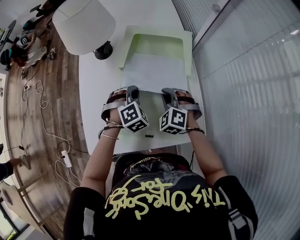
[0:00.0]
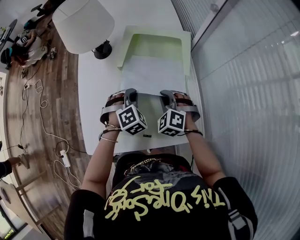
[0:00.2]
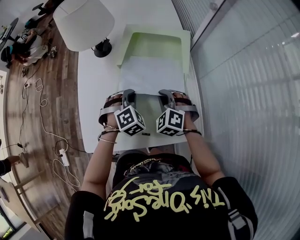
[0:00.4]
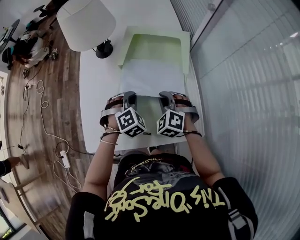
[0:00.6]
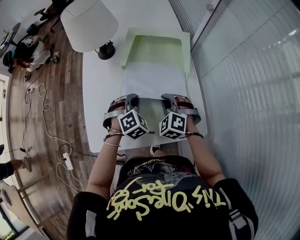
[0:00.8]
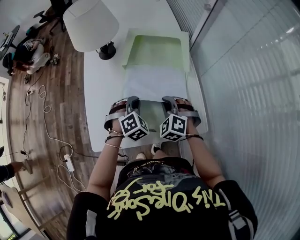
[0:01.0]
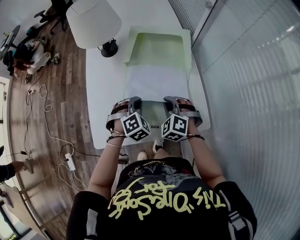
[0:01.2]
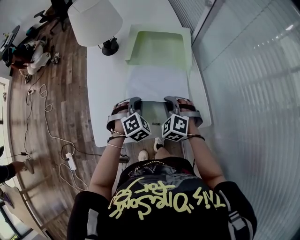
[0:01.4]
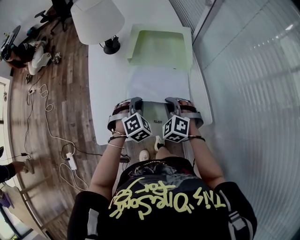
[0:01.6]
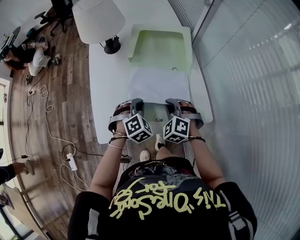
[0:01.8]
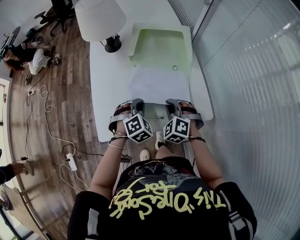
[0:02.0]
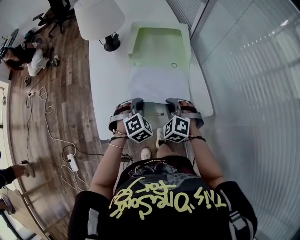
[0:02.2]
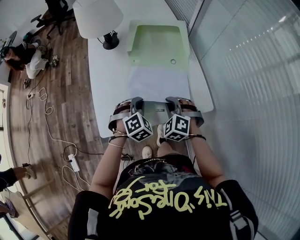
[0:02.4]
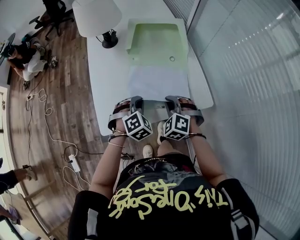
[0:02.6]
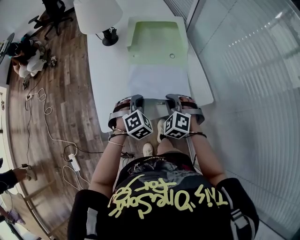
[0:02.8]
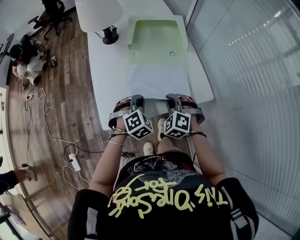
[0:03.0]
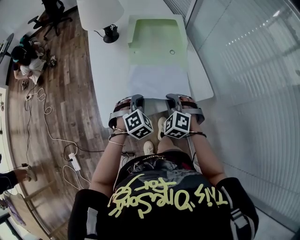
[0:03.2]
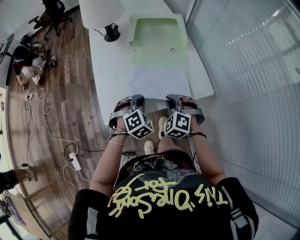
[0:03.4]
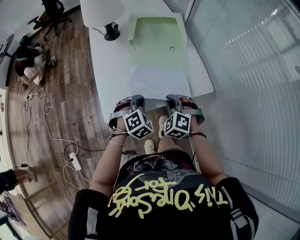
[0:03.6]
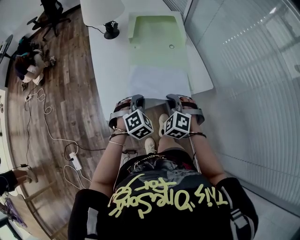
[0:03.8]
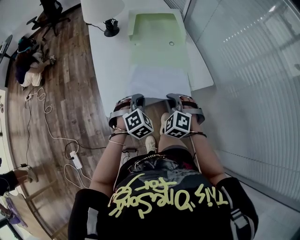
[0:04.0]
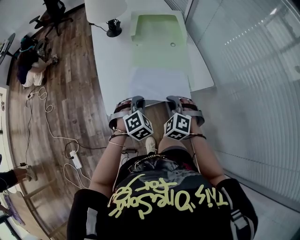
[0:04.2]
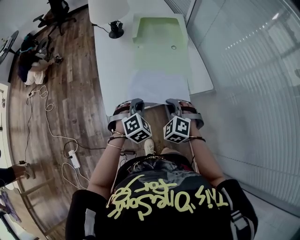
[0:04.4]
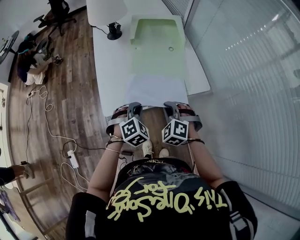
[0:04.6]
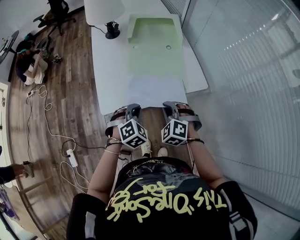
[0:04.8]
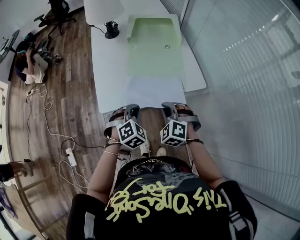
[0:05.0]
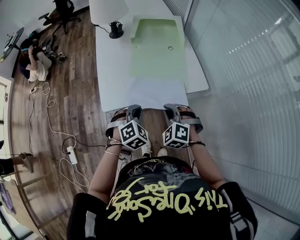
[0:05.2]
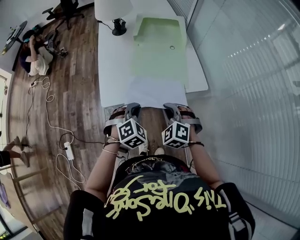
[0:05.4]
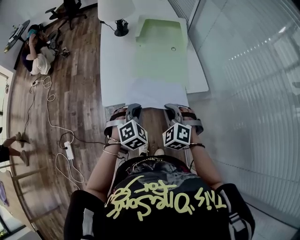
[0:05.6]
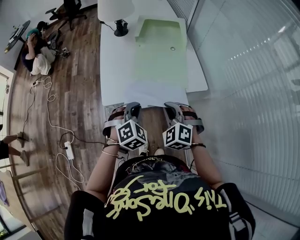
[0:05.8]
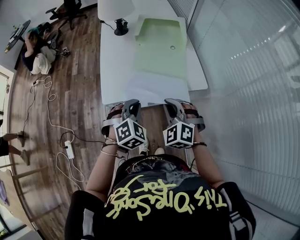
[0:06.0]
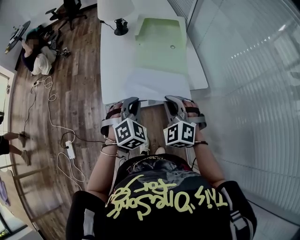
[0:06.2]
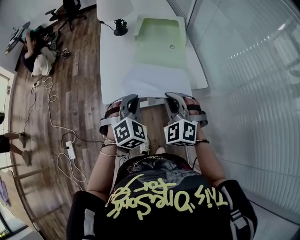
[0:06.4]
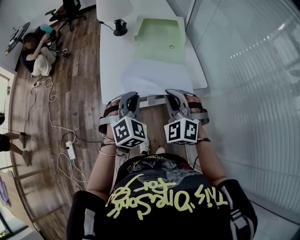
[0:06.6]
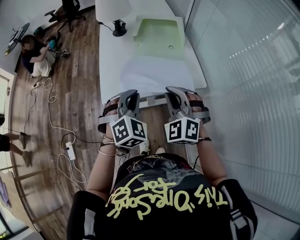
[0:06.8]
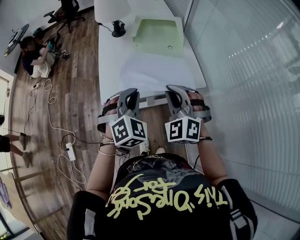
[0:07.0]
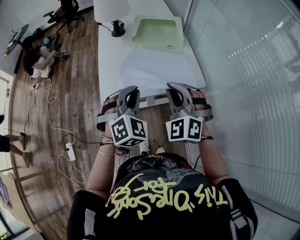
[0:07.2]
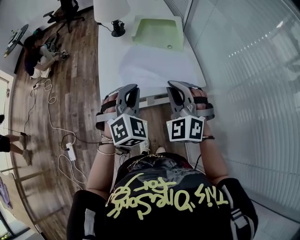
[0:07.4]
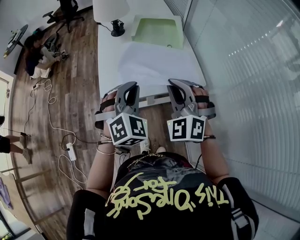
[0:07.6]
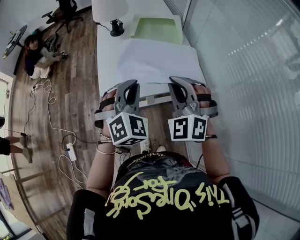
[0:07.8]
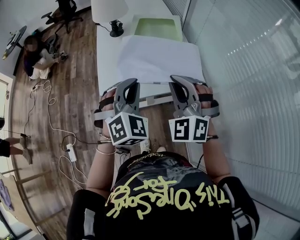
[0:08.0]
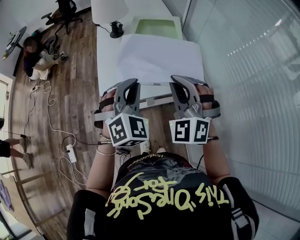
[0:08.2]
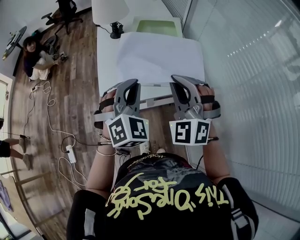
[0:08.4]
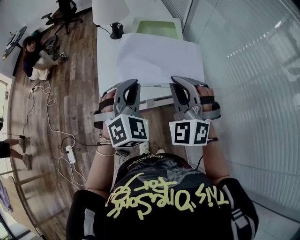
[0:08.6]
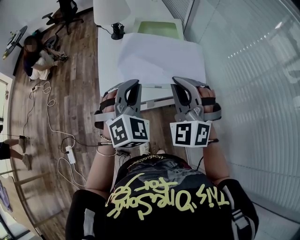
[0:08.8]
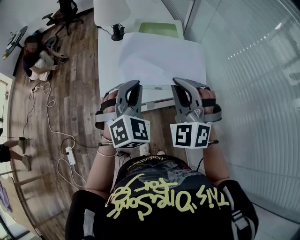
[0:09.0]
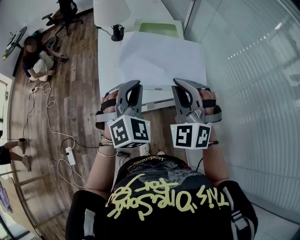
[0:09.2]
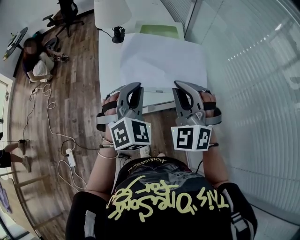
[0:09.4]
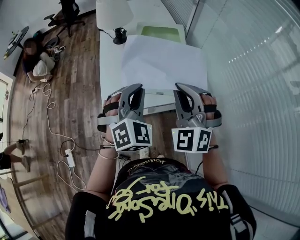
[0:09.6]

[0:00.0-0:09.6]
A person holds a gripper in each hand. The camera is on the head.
0:00.0 to 0:01.6: The two grippers go some 10 cm backward.
0:01.6 to 0:03.2: The grippers both shift backward by some 10 cm.
0:03.2 to 0:04.8: Both grippers travel together backward, some 10 cm.
0:04.8 to 0:06.4: Both grippers move upward, some 10 cm.
0:06.4 to 0:08.0: Both grippers move upward, some 10 cm.
0:08.0 to 0:09.6: The grippers make only small movements.

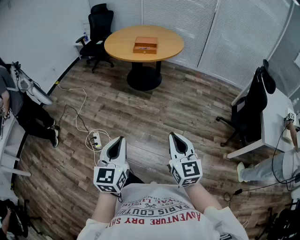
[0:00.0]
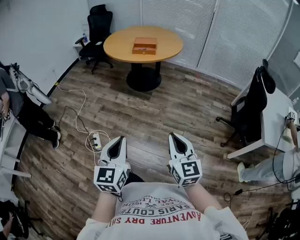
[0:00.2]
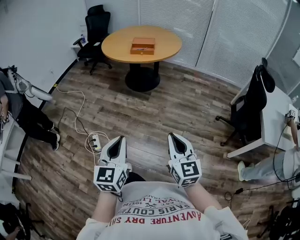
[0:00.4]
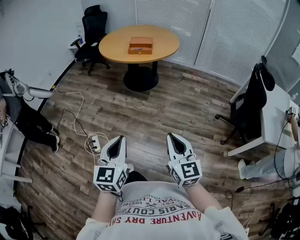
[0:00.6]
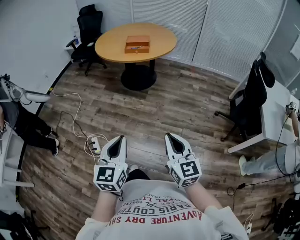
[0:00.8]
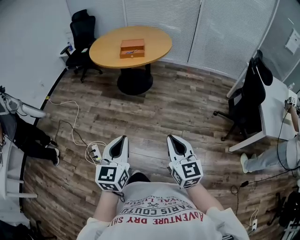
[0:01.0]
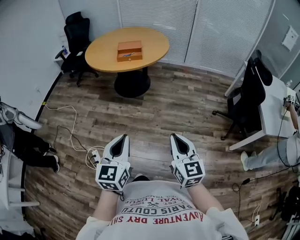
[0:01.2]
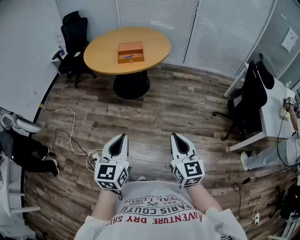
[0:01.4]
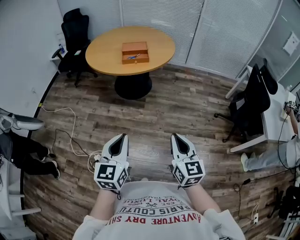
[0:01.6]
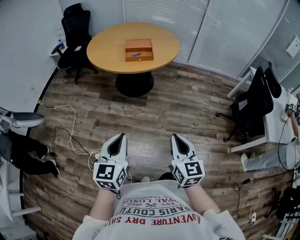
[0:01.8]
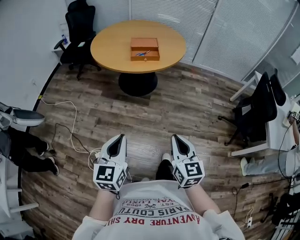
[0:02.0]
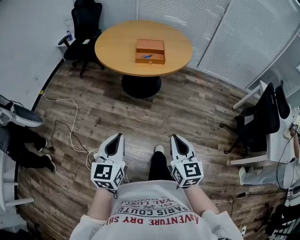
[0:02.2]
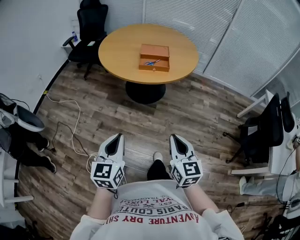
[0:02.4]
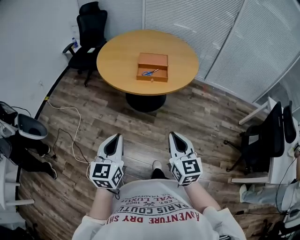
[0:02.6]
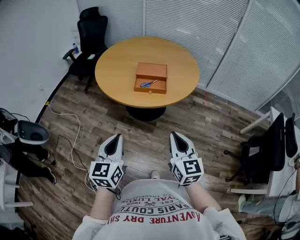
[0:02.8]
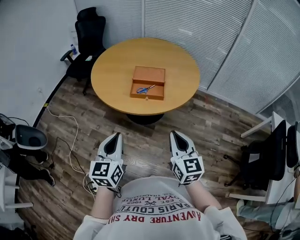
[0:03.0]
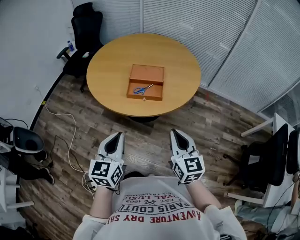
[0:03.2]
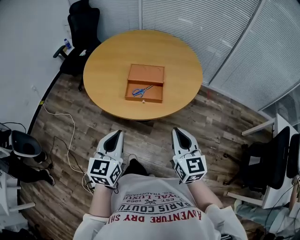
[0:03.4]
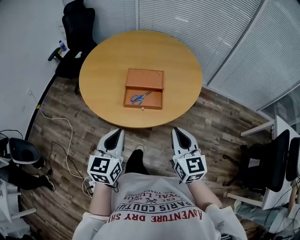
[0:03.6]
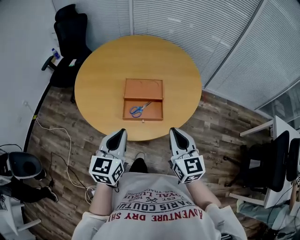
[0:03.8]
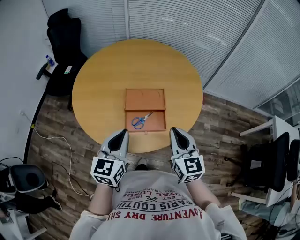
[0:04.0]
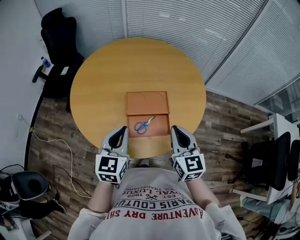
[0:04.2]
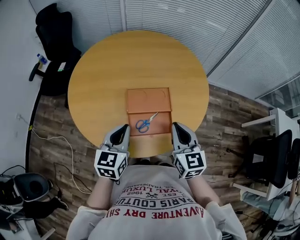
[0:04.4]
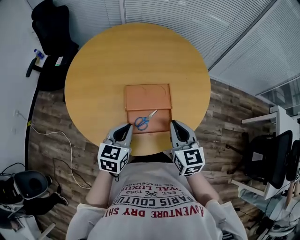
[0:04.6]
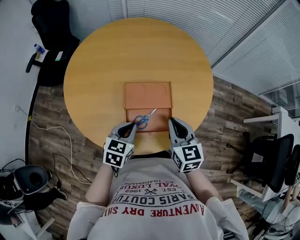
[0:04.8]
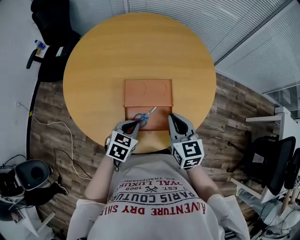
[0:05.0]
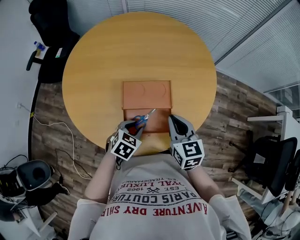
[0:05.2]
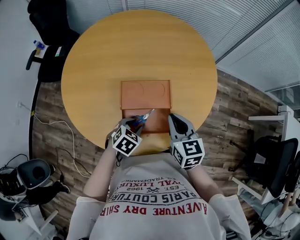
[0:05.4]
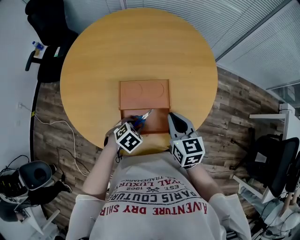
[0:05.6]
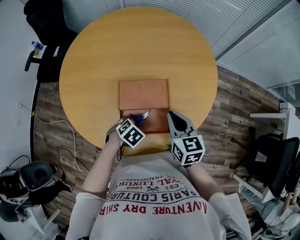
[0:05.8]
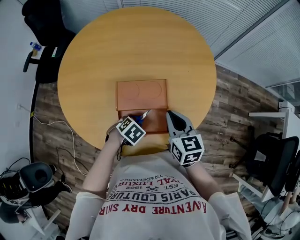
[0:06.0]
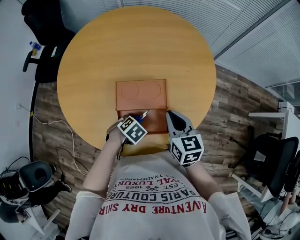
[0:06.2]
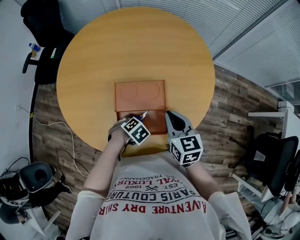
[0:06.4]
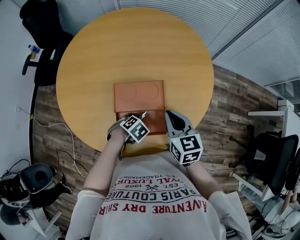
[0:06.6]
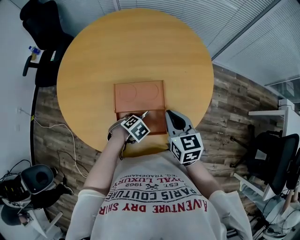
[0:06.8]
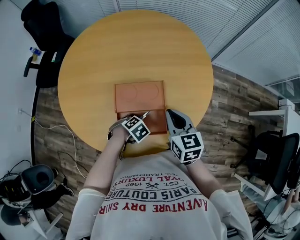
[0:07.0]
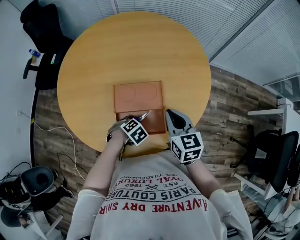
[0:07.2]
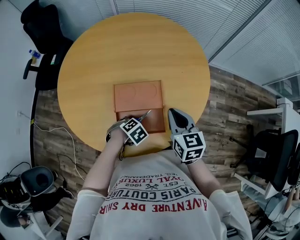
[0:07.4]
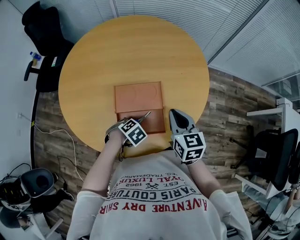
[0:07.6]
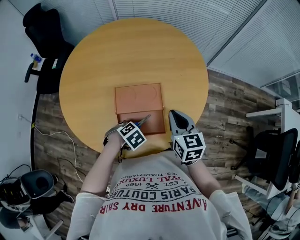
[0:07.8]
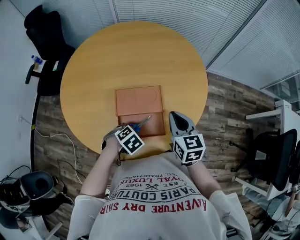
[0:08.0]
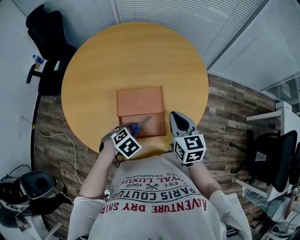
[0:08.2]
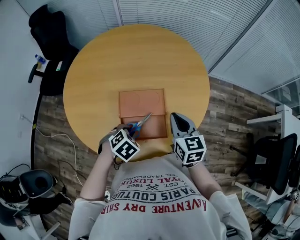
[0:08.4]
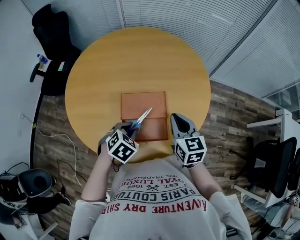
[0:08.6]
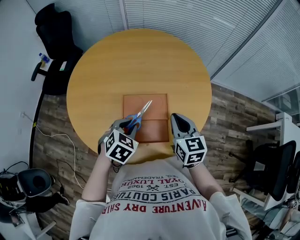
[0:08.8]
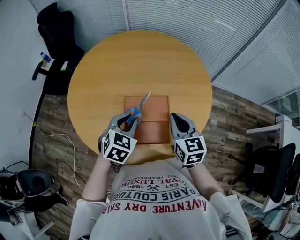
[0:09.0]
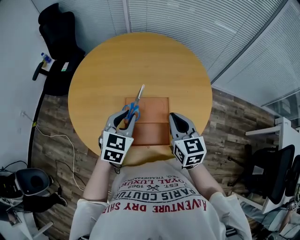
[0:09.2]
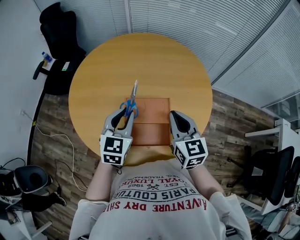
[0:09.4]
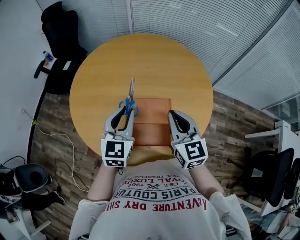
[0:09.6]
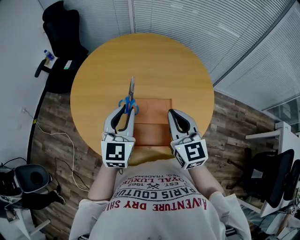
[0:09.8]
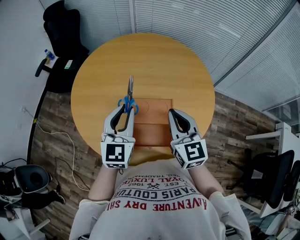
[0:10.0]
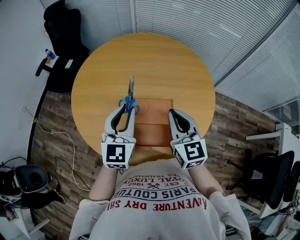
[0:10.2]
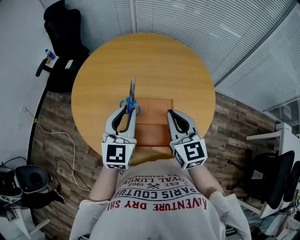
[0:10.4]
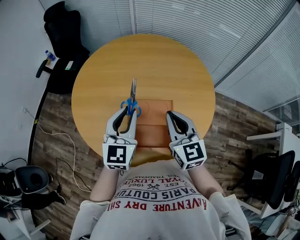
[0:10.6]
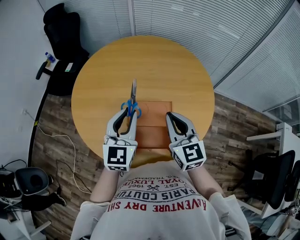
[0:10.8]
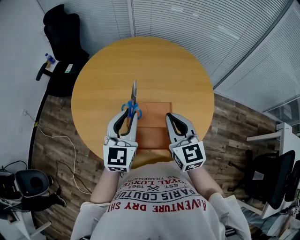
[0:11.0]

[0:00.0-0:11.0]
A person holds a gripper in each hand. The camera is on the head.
0:00.0 to 0:01.6: The left gripper moves forward, some 25 cm. Meanwhile the right gripper shifts some 20 cm forward and to the left.
0:01.6 to 0:03.2: The pair of grippers is taken forward, some 40 cm.
0:03.2 to 0:04.8: The grippers both shift forward by roughly 35 cm. The left gripper turns by some 40 degrees.
0:04.8 to 0:06.2: The left gripper is displaced downward by about 15 cm, and points its fingers some 40 degrees further downward; the right gripper shifts by roughly 5 cm.
0:06.2 to 0:07.8: The grippers stay close to where they were, moving slightly.
0:07.8 to 0:09.4: The left gripper shifts roughly 25 cm upward, and tips its fingers upward by about 60 degrees, while the right gripper shifts roughly 10 cm upward.
0:09.4 to 0:11.0: There are only small adjustments of the grippers.

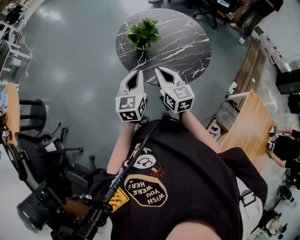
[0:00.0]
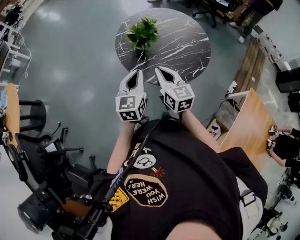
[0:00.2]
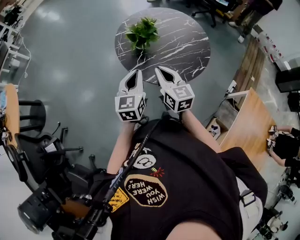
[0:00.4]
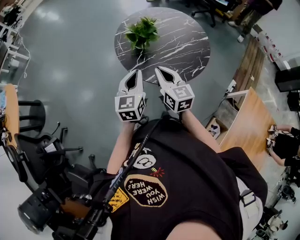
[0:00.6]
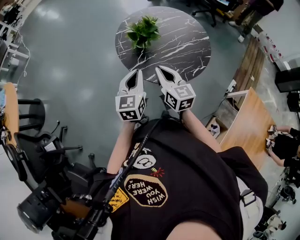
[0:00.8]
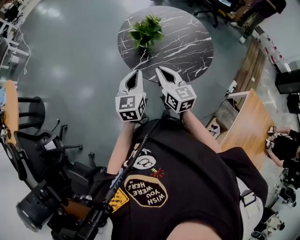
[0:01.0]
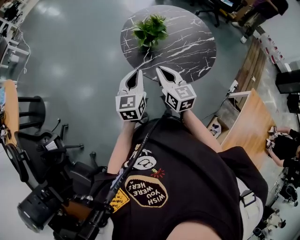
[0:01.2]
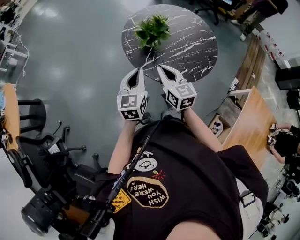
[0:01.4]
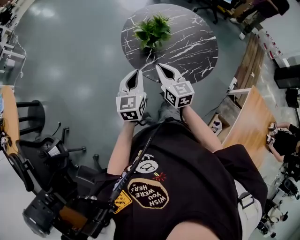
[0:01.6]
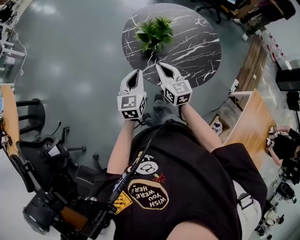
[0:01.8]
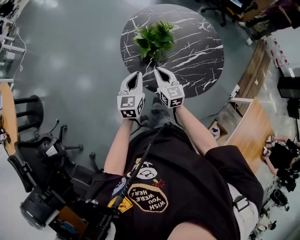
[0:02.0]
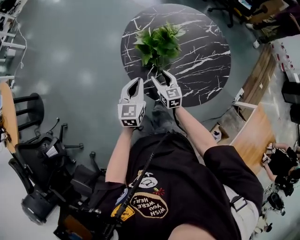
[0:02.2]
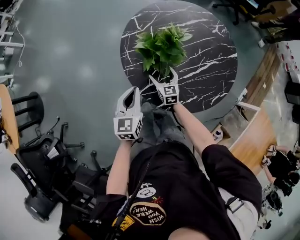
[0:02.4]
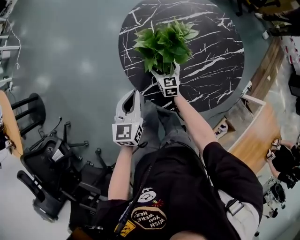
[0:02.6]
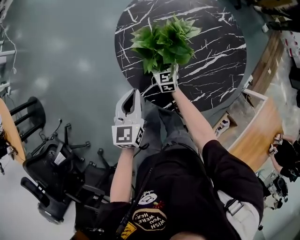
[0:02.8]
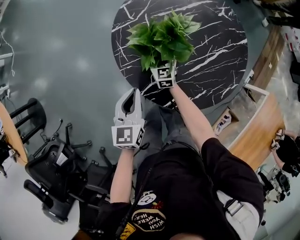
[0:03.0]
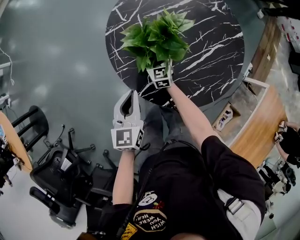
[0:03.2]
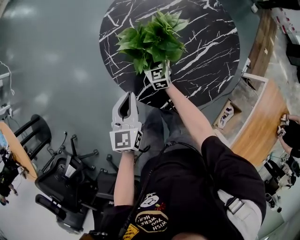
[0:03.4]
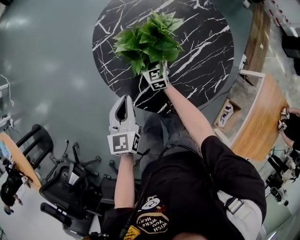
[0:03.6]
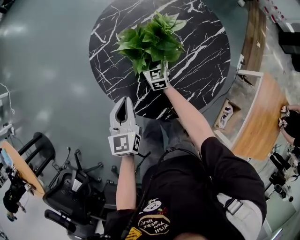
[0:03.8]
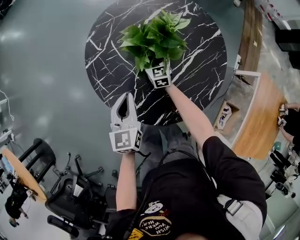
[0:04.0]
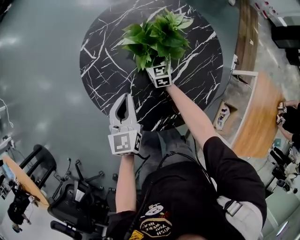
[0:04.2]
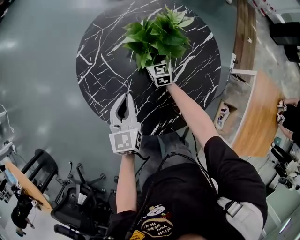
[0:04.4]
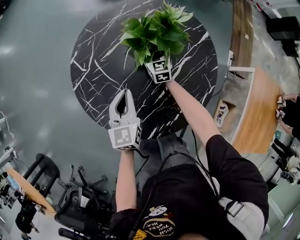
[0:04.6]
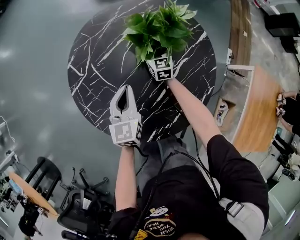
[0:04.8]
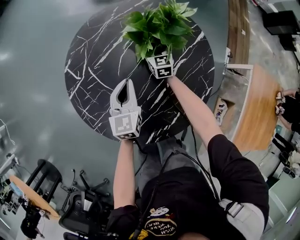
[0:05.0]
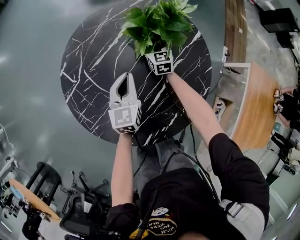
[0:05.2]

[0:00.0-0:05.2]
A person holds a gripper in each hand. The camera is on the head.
0:00.0 to 0:01.8: The left gripper shifts roughly 15 cm forward, to the left and downward, while the right gripper travels forward, downward and to the left by some 15 cm.
0:01.8 to 0:03.4: The left gripper shifts roughly 20 cm forward and downward. The right gripper travels downward and forward by approximately 40 cm, and opens up.
0:03.4 to 0:05.2: The left gripper travels forward and to the right by some 30 cm, while the right gripper shifts approximately 35 cm to the right and forward.
